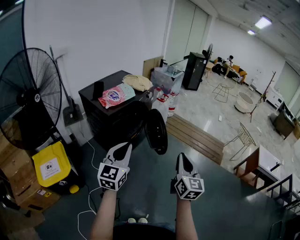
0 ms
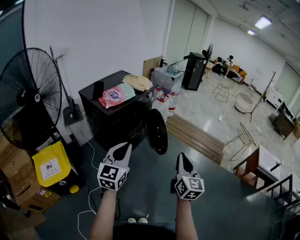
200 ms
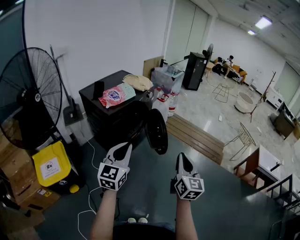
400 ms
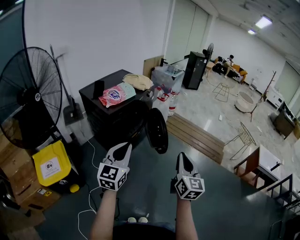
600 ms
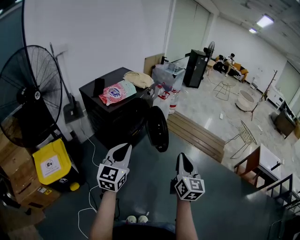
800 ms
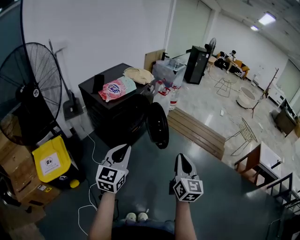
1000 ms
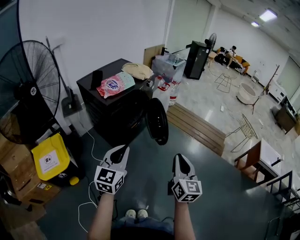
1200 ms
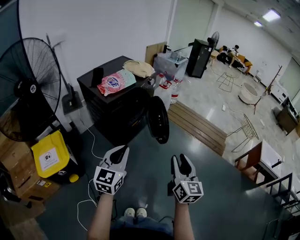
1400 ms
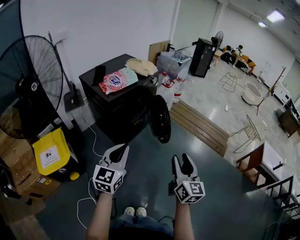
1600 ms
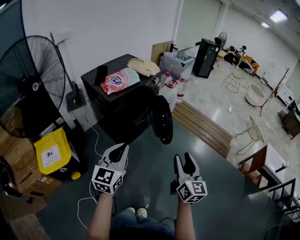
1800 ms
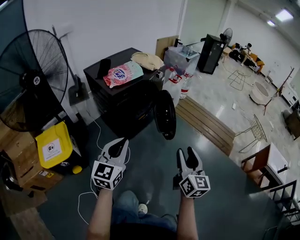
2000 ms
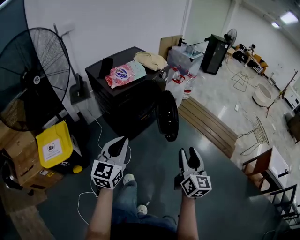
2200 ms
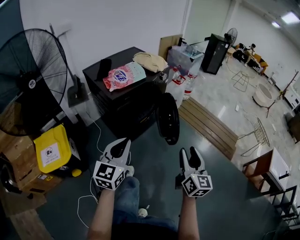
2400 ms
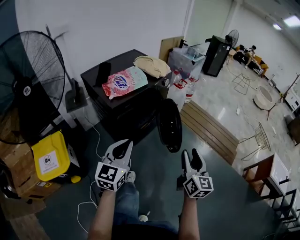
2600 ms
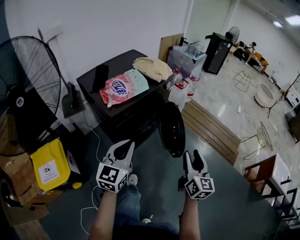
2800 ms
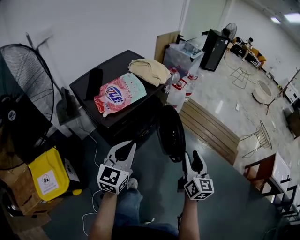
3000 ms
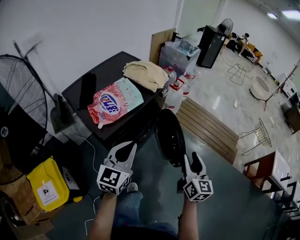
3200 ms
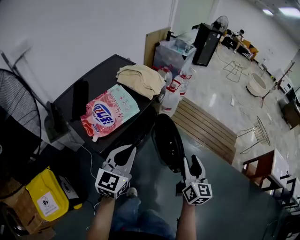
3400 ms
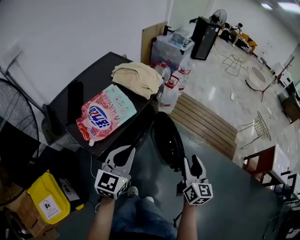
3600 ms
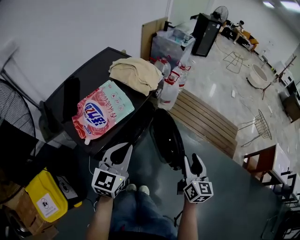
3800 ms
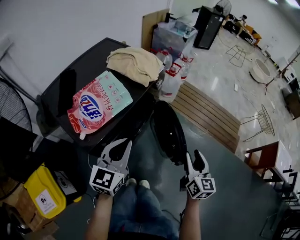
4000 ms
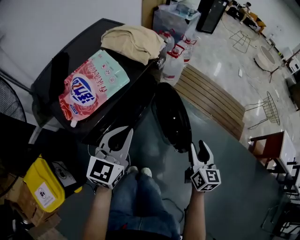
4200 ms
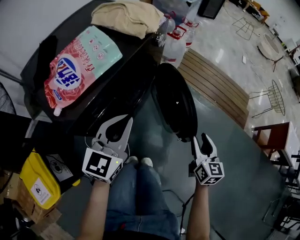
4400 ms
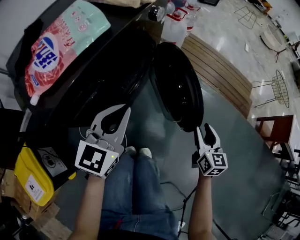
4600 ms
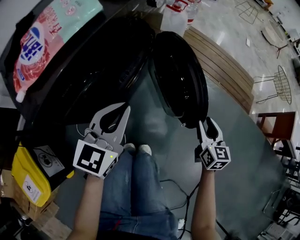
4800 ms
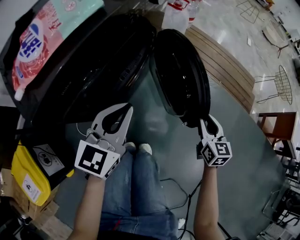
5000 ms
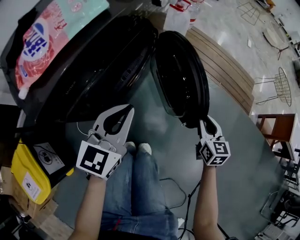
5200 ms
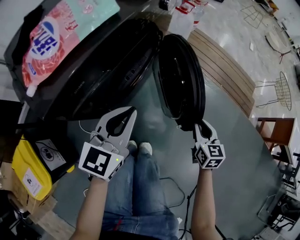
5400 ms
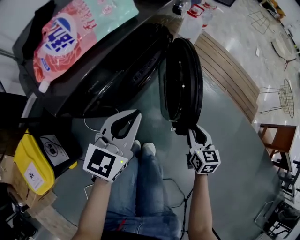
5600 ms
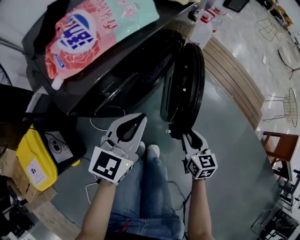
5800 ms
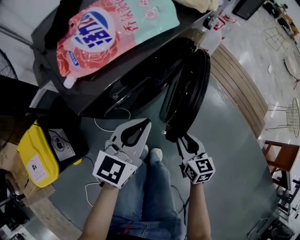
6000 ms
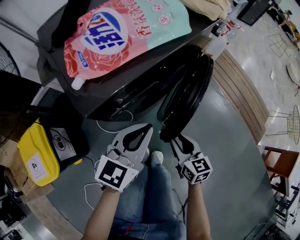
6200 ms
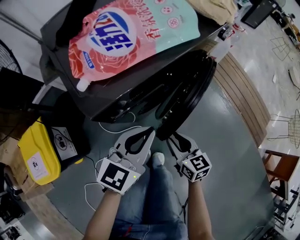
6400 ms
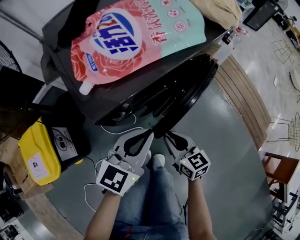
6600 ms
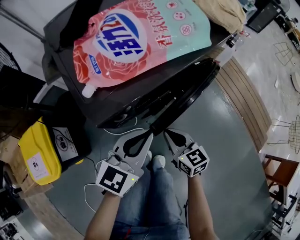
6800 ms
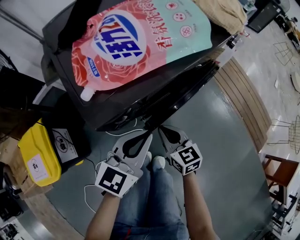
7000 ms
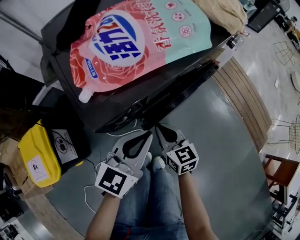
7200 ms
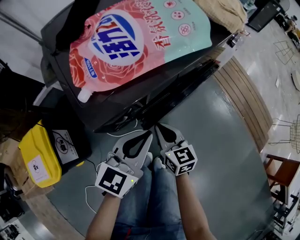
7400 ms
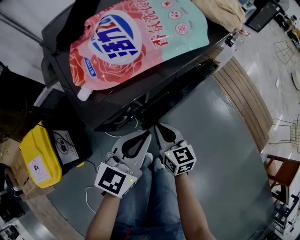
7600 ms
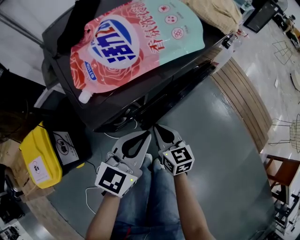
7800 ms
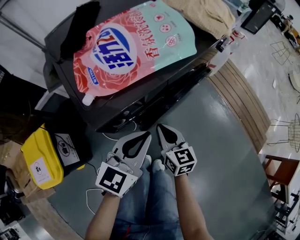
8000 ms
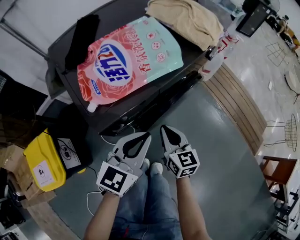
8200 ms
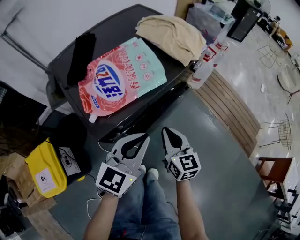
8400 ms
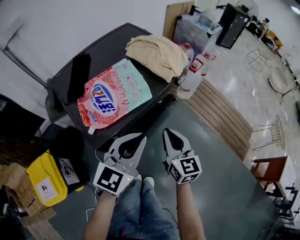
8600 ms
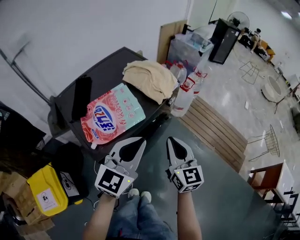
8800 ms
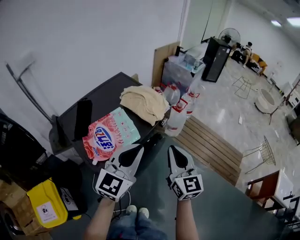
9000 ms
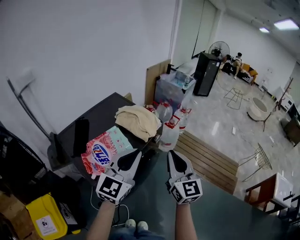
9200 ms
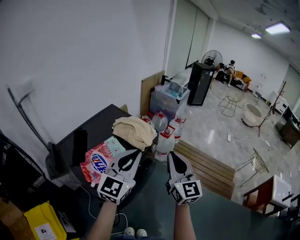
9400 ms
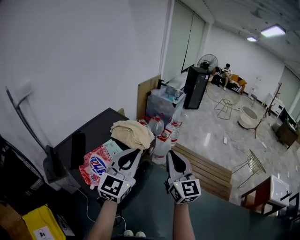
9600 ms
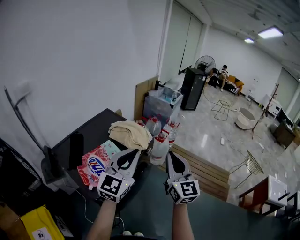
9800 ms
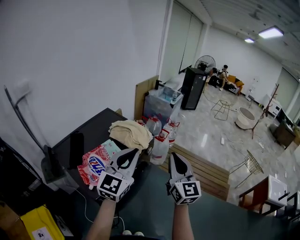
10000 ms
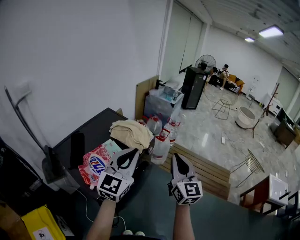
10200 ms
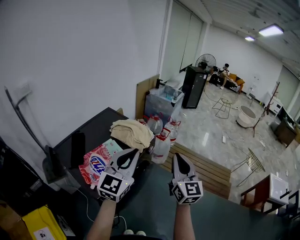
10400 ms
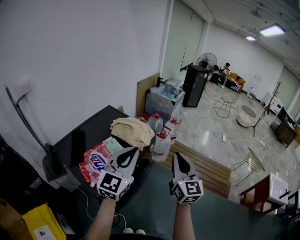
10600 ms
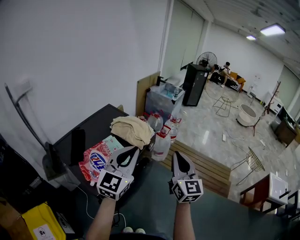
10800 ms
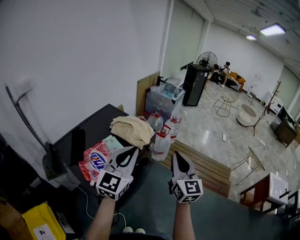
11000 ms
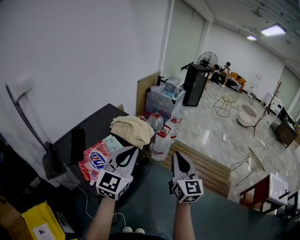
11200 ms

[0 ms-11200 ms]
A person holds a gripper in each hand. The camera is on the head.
0 ms to 1600 ms: The right gripper opens.
1600 ms to 3200 ms: Both grippers travel together forward, about 35 cm.
3200 ms to 4800 ms: The grippers both shift downward by roughly 30 cm.
4800 ms to 6400 ms: The right gripper ends up some 30 cm from where it was, and turns by approximately 40 degrees, while the left gripper moves roughly 10 cm.
6400 ms to 8000 ms: The right gripper travels forward by approximately 10 cm, and closes its fingers.
8000 ms to 9600 ms: Both grippers move upward, about 50 cm. The right gripper angles its fingers upward, by about 30 degrees. Meanwhile the left gripper swivels some 30 degrees.
9600 ms to 11200 ms: The grippers make only small movements.

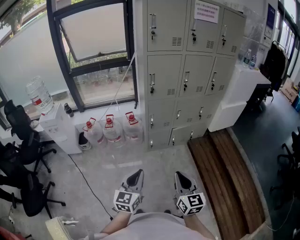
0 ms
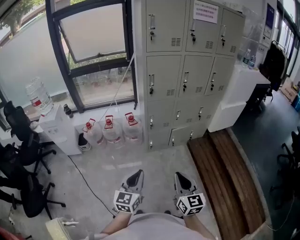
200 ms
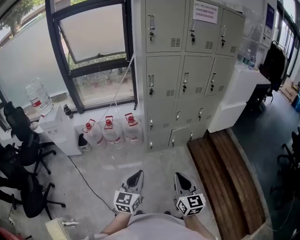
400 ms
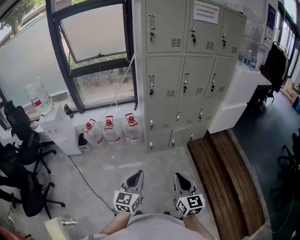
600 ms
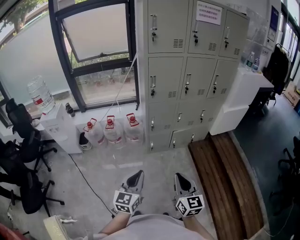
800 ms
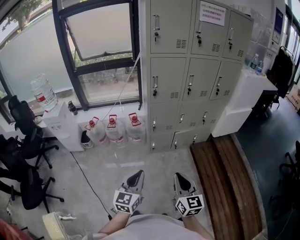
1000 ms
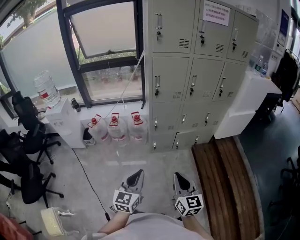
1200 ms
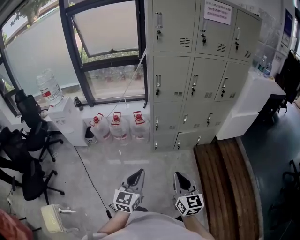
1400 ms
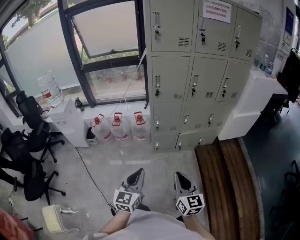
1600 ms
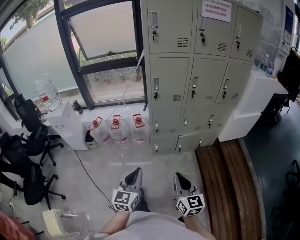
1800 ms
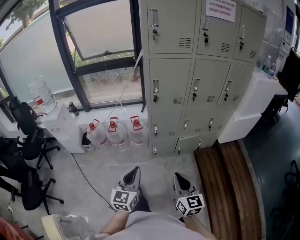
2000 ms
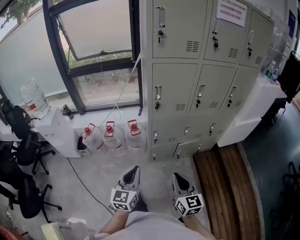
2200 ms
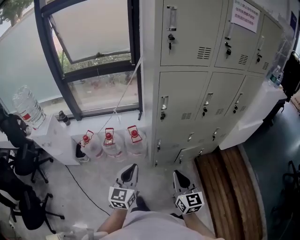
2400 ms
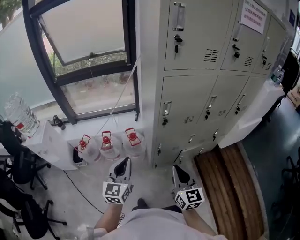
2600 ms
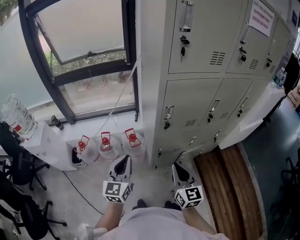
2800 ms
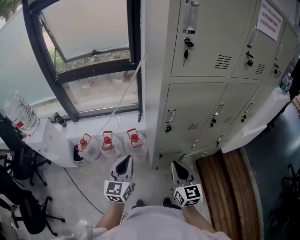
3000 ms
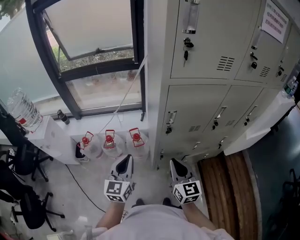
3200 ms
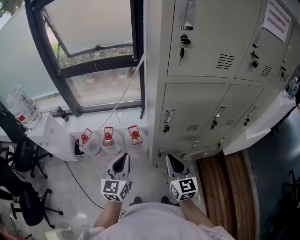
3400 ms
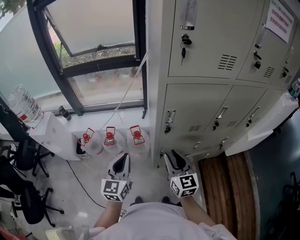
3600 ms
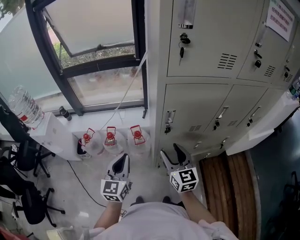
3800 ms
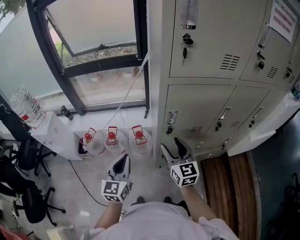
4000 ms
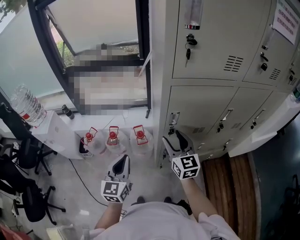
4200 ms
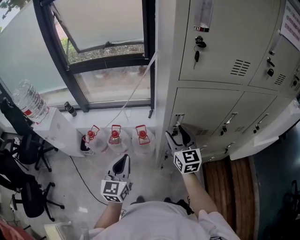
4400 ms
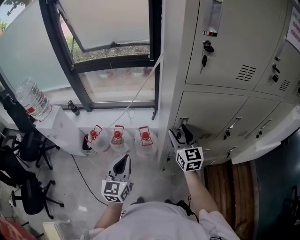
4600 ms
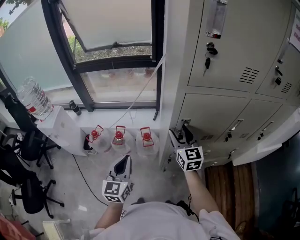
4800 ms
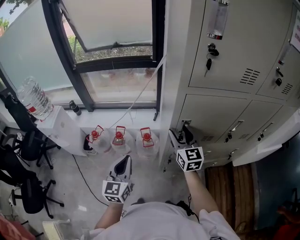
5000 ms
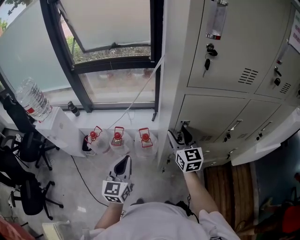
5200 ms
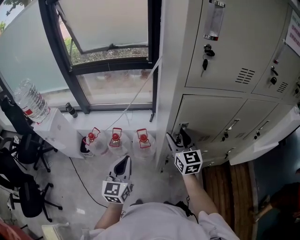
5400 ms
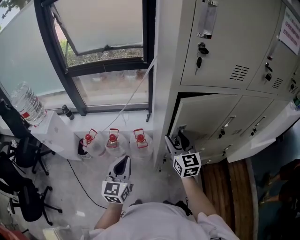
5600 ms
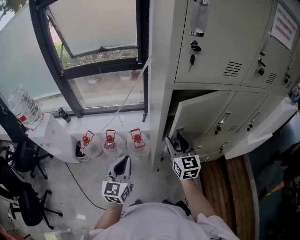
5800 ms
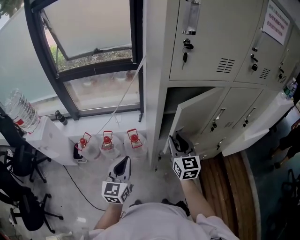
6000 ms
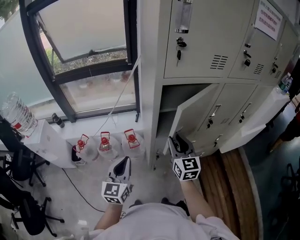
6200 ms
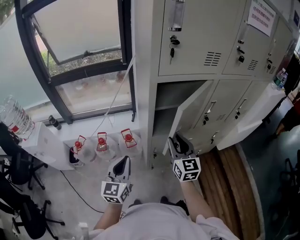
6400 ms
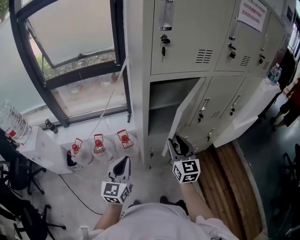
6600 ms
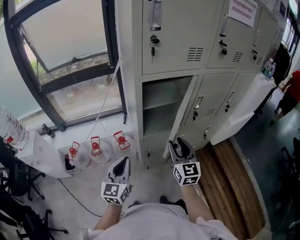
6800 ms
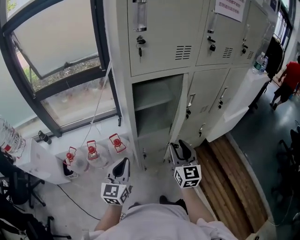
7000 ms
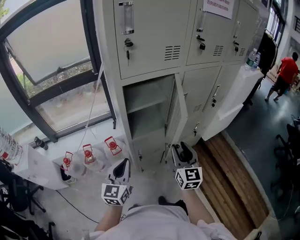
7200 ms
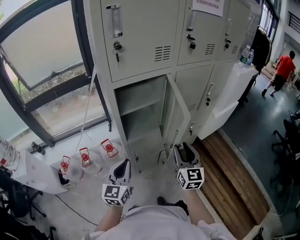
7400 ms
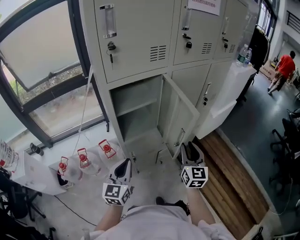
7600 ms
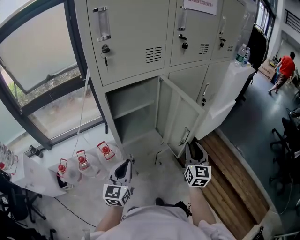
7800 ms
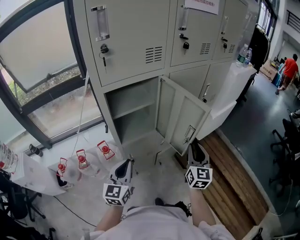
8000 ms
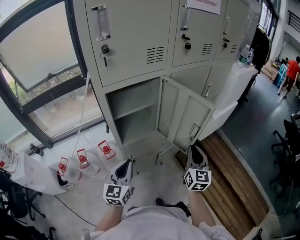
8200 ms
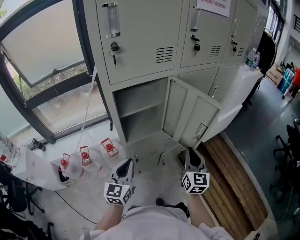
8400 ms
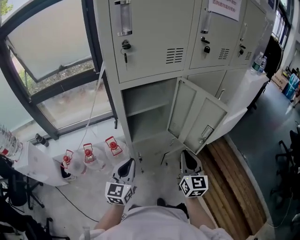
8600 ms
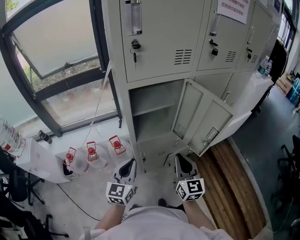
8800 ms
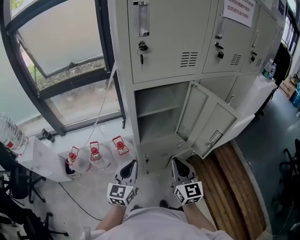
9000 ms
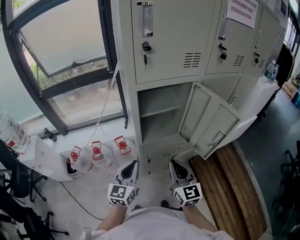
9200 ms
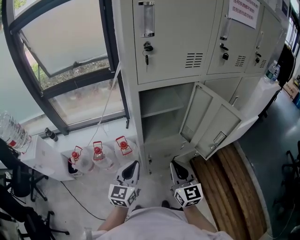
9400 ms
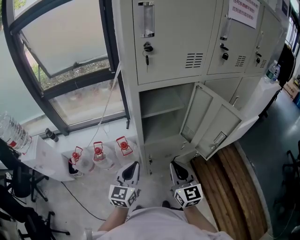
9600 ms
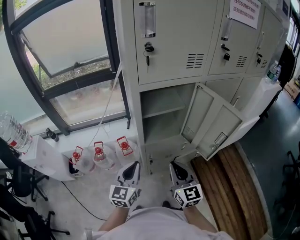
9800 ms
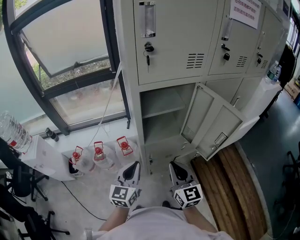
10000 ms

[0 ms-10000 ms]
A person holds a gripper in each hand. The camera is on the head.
0 ms to 1400 ms: The right gripper heads forward, covering approximately 5 cm; the left gripper is displaced to the right by roughly 5 cm.
1400 ms to 2800 ms: Both grippers are carried forward, some 50 cm.
2800 ms to 4200 ms: The right gripper travels forward by some 15 cm, and opens its fingers.
5800 ms to 7200 ms: The right gripper travels to the right and backward by roughly 20 cm, and swivels about 30 degrees. The left gripper is displaced to the right by roughly 10 cm.
7200 ms to 8600 ms: The right gripper travels to the right and back again, approximately 15 cm each way, and closes its fingers.
8600 ms to 10000 ms: The right gripper moves to the left, roughly 10 cm.

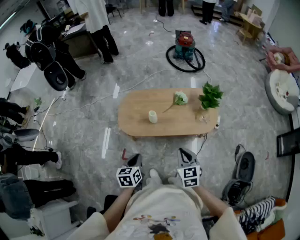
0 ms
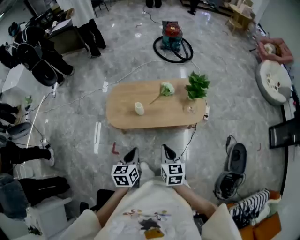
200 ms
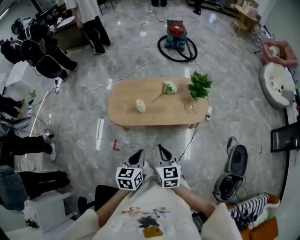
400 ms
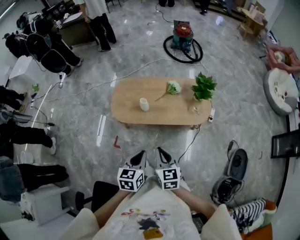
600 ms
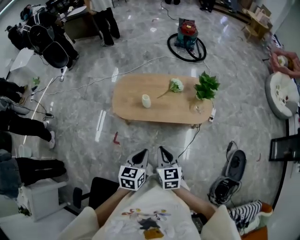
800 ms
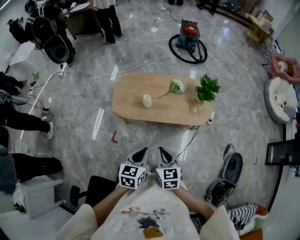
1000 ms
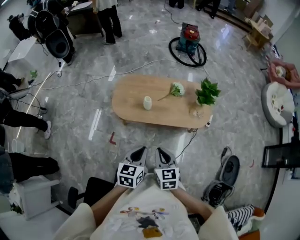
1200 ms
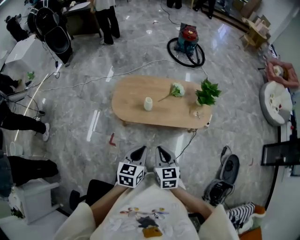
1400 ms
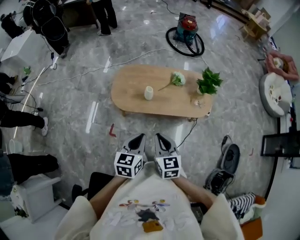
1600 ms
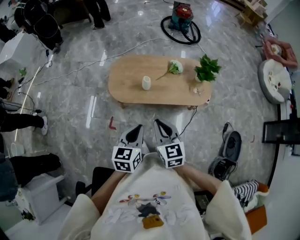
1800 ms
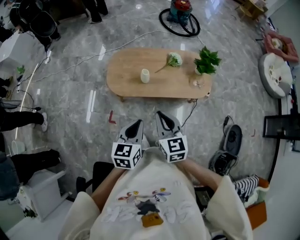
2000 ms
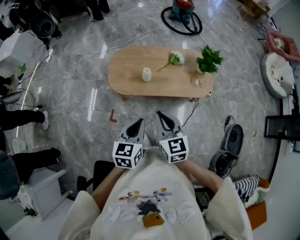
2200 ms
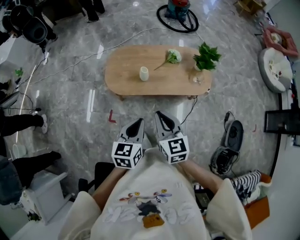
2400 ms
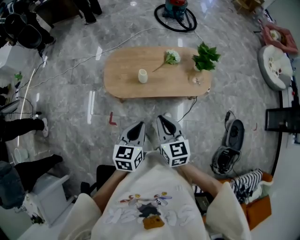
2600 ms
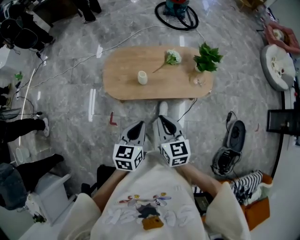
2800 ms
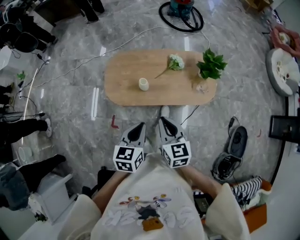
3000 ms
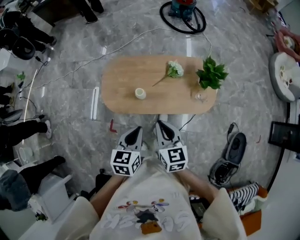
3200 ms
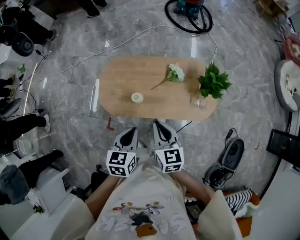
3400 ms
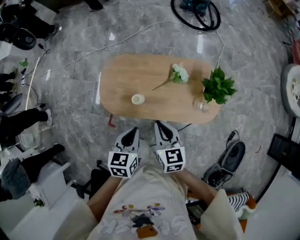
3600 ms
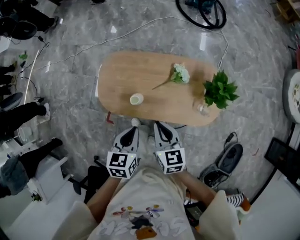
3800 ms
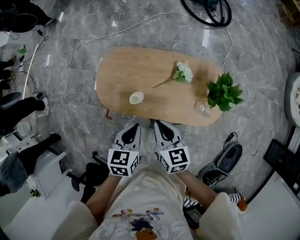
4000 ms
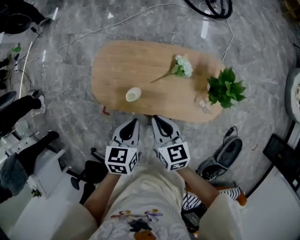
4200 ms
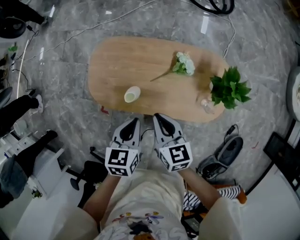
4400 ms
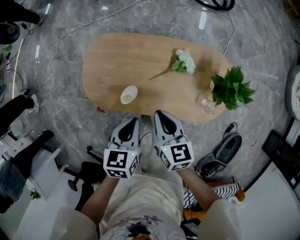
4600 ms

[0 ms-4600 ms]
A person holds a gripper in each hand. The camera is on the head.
0 ms to 1600 ms: The right gripper moves to the left, some 10 cm, while the left gripper heads upward, covering roughly 5 cm, and goes to the right and returns, roughly 10 cm each way.
1600 ms to 3000 ms: The right gripper goes roughly 15 cm forward and to the right, while the left gripper shifts some 10 cm forward.
3000 ms to 4600 ms: The grippers both shift forward and downward by roughly 30 cm.
